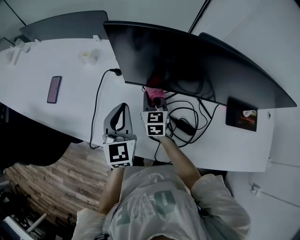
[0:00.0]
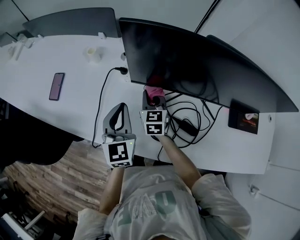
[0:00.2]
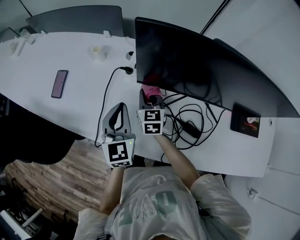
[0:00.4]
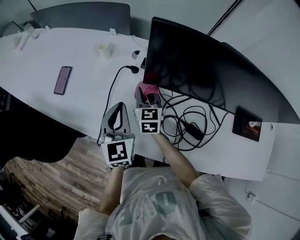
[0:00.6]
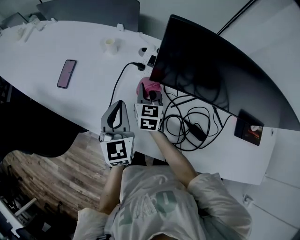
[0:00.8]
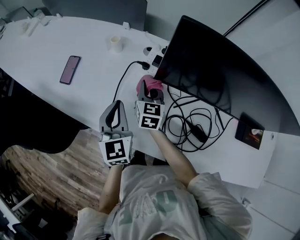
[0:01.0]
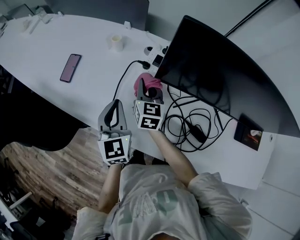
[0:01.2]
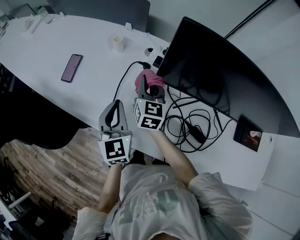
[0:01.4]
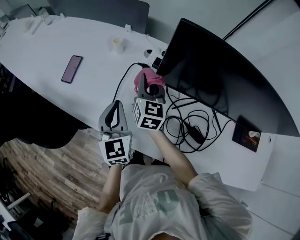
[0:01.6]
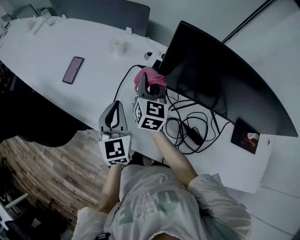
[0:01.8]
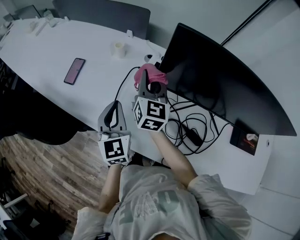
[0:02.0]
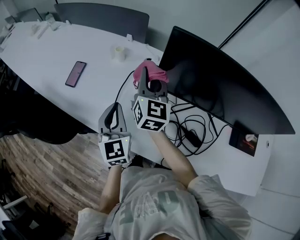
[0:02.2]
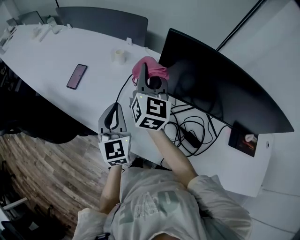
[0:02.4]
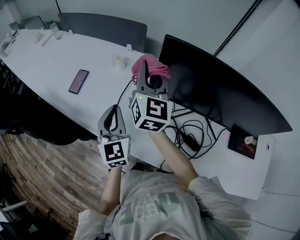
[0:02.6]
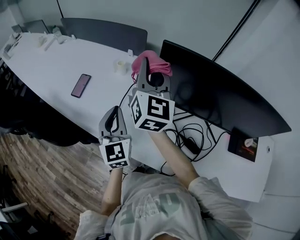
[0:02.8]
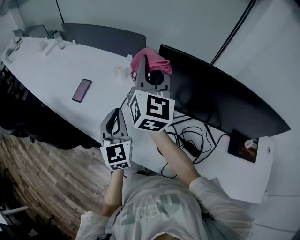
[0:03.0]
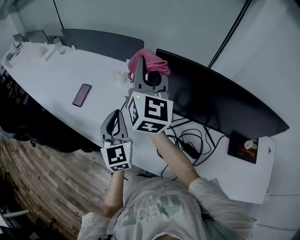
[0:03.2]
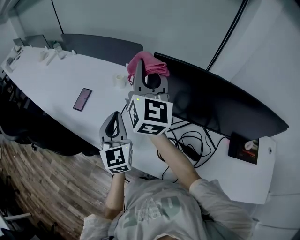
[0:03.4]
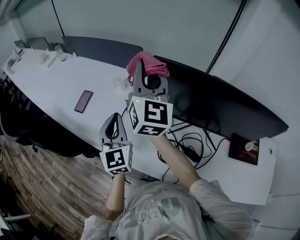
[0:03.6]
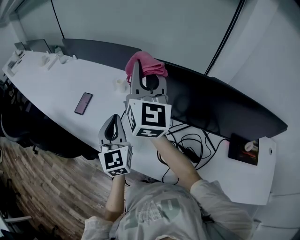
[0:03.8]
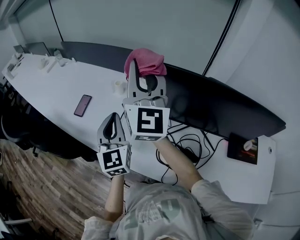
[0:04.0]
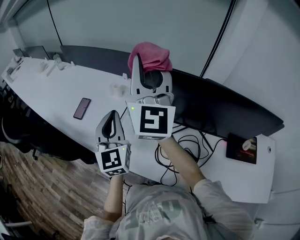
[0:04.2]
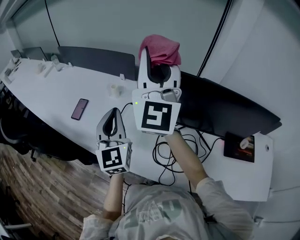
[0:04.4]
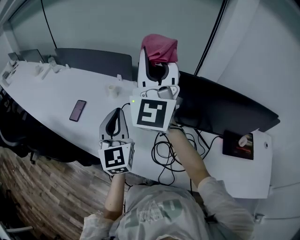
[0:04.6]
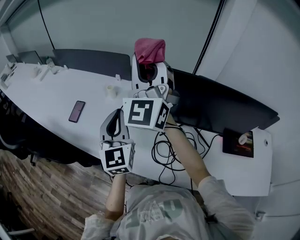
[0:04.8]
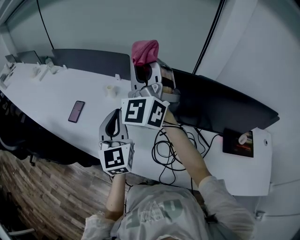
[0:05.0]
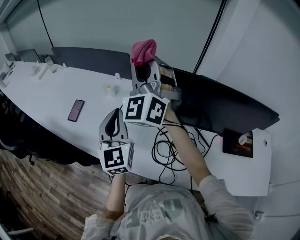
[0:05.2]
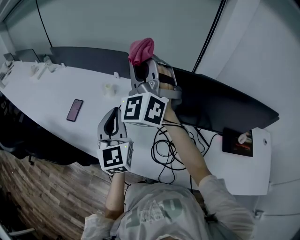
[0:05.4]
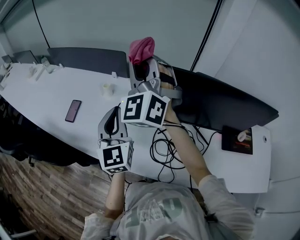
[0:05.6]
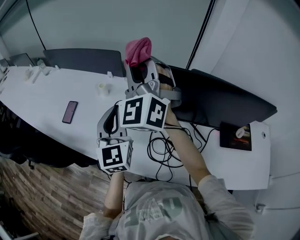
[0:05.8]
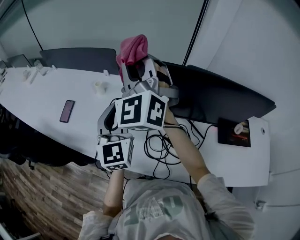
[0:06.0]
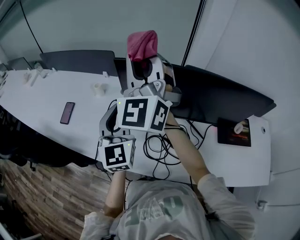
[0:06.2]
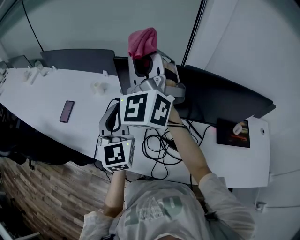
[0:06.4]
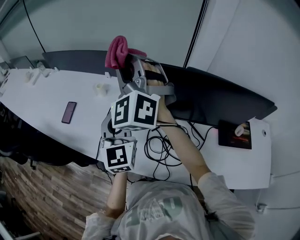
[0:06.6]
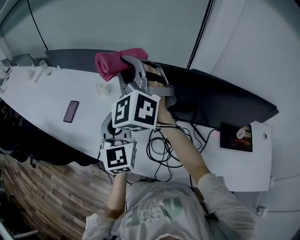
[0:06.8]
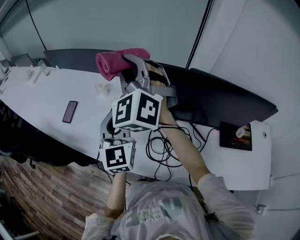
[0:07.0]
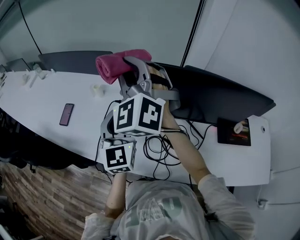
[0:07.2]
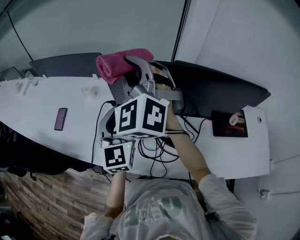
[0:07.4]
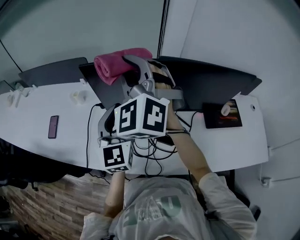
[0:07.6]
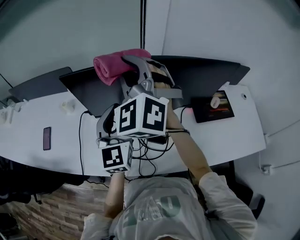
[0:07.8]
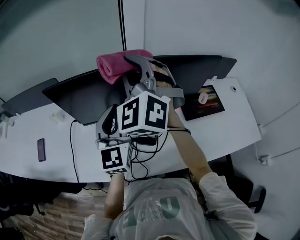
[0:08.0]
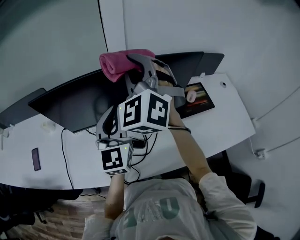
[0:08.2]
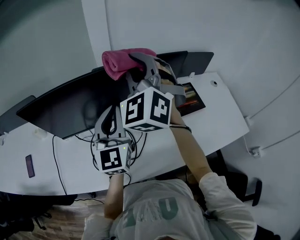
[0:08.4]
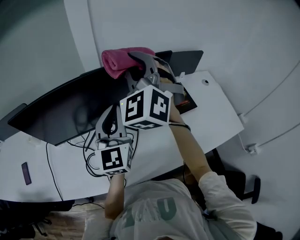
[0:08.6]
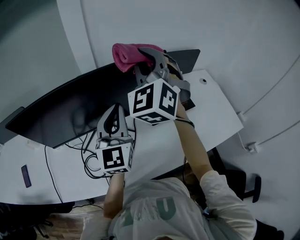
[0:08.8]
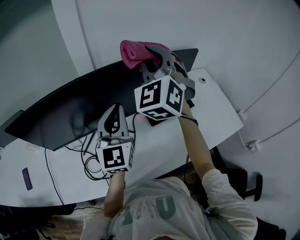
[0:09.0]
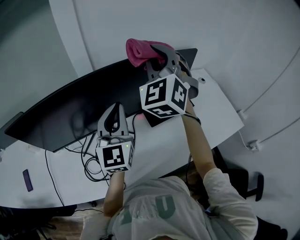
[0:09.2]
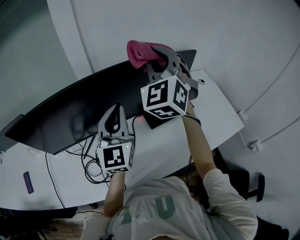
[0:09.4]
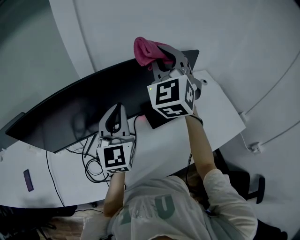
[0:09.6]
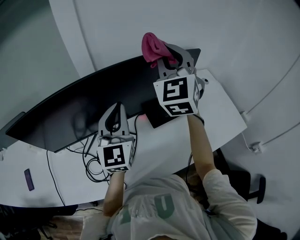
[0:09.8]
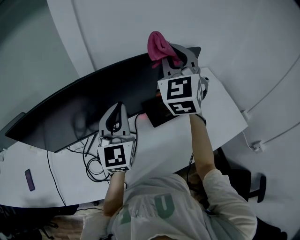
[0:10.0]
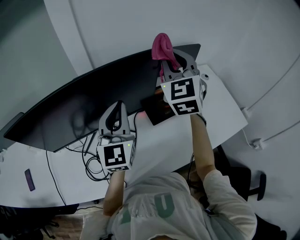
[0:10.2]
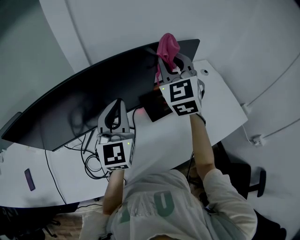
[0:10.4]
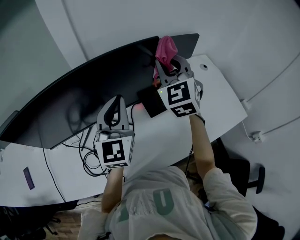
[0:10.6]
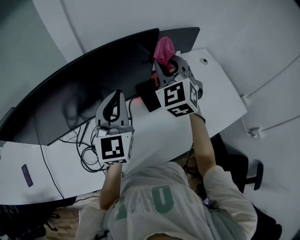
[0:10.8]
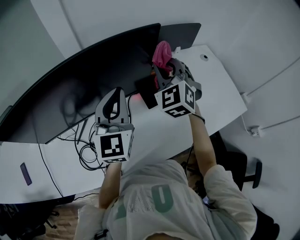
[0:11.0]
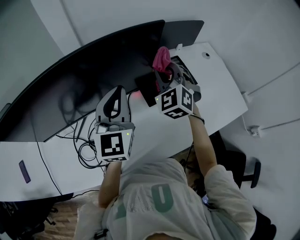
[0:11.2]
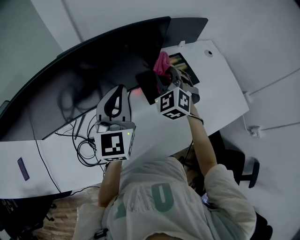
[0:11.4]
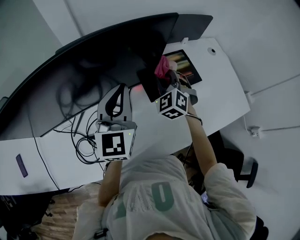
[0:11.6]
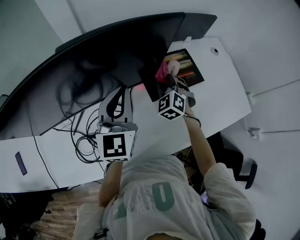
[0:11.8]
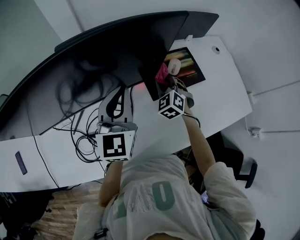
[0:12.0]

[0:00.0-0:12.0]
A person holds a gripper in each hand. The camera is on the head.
0:00.0 to 0:01.6: The right gripper heads to the left and upward, covering about 15 cm; the left gripper travels to the left by approximately 10 cm.
0:01.6 to 0:03.0: The right gripper moves upward, about 25 cm, and changes its angle by approximately 30 degrees. The left gripper moves upward, some 10 cm.
0:03.0 to 0:04.4: The right gripper is displaced upward and backward by some 15 cm, and turns by approximately 30 degrees. The left gripper is displaced upward by approximately 10 cm.
0:04.4 to 0:06.0: The left gripper is displaced to the right by roughly 5 cm. Meanwhile the right gripper shifts some 5 cm downward, and rotates approximately 40 degrees.
0:06.0 to 0:07.6: The two grippers go some 10 cm to the right.
0:07.6 to 0:09.0: The left gripper changes place by roughly 35 cm, and rotates some 30 degrees, while the right gripper moves approximately 40 cm, and turns by about 30 degrees.
0:09.0 to 0:10.4: The right gripper travels to the right and downward by some 10 cm.
0:10.4 to 0:12.0: The right gripper heads downward, covering about 35 cm, and tips its fingers downward by roughly 30 degrees, while the left gripper heads downward, covering about 10 cm.

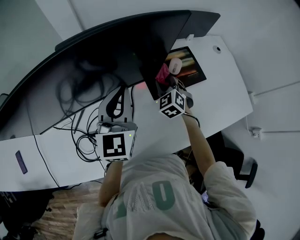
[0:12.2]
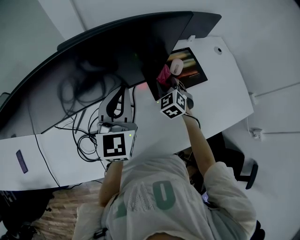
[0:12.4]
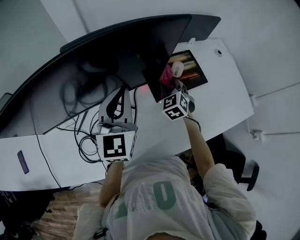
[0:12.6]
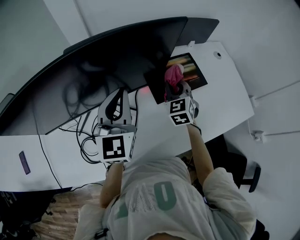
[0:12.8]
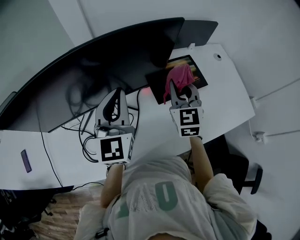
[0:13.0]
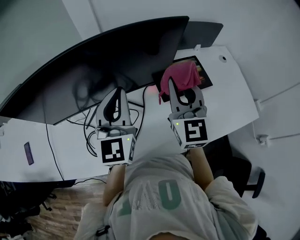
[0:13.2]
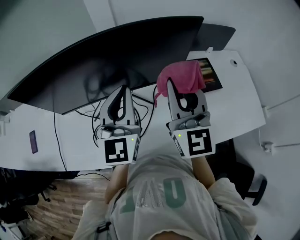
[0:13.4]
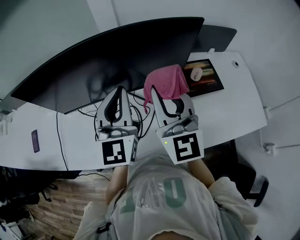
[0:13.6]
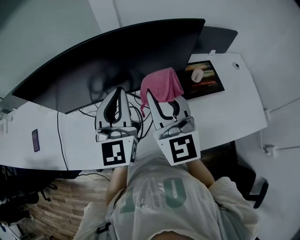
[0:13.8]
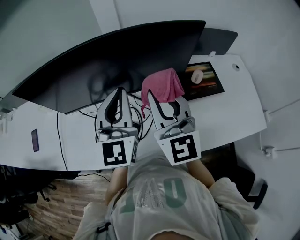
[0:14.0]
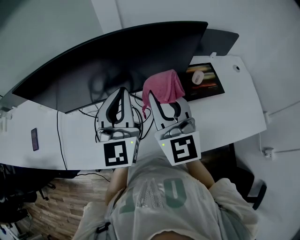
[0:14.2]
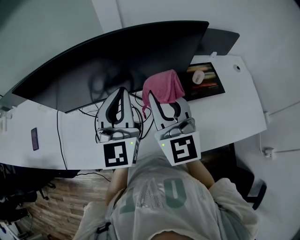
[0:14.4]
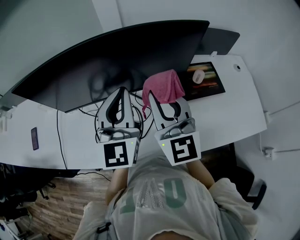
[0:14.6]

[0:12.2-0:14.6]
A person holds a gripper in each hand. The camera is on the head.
0:12.2 to 0:13.4: The left gripper moves upward, backward and to the left, about 10 cm; the right gripper travels upward and backward by some 35 cm, and angles its fingers upward, by roughly 50 degrees.
0:13.4 to 0:14.6: The right gripper travels to the left by about 5 cm.

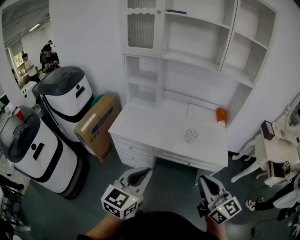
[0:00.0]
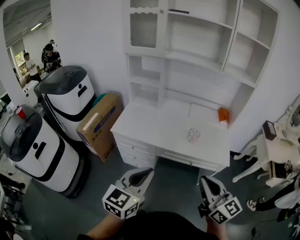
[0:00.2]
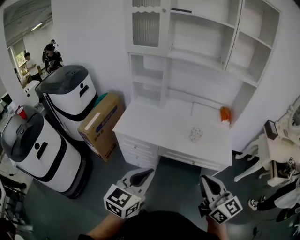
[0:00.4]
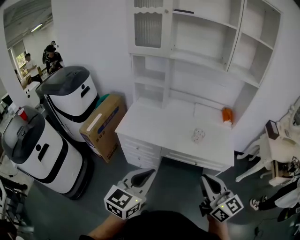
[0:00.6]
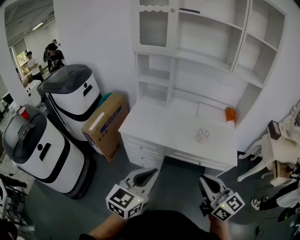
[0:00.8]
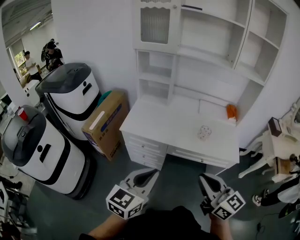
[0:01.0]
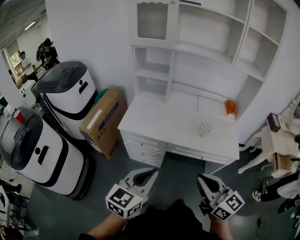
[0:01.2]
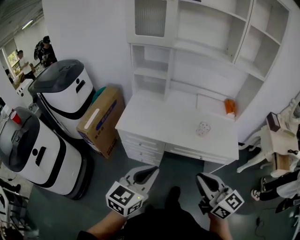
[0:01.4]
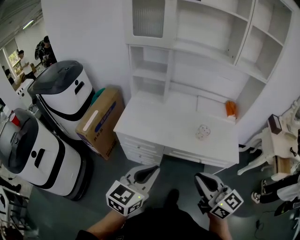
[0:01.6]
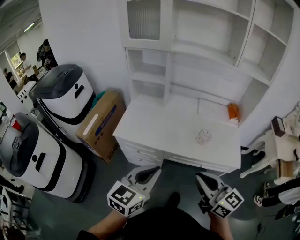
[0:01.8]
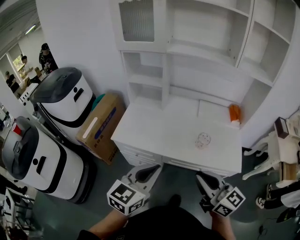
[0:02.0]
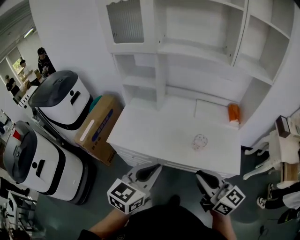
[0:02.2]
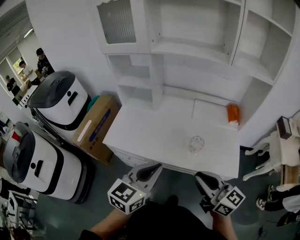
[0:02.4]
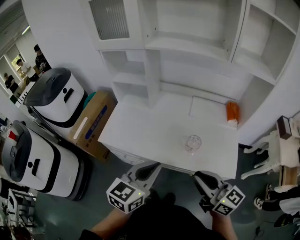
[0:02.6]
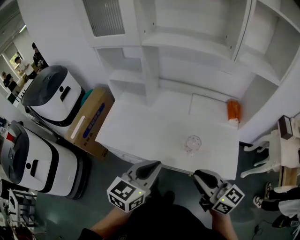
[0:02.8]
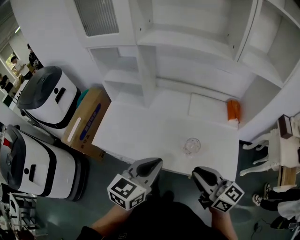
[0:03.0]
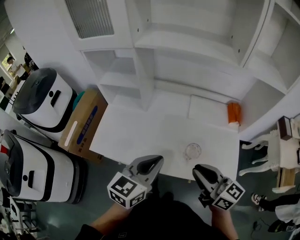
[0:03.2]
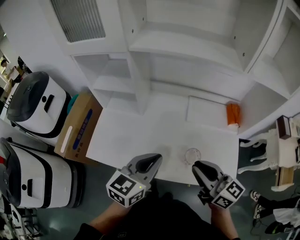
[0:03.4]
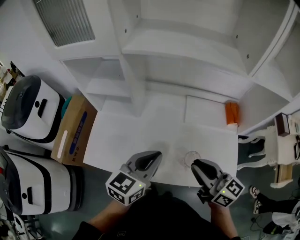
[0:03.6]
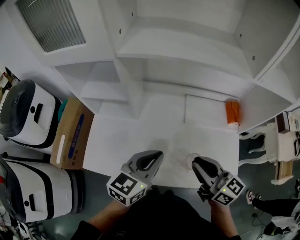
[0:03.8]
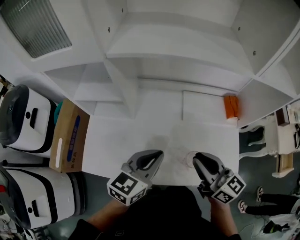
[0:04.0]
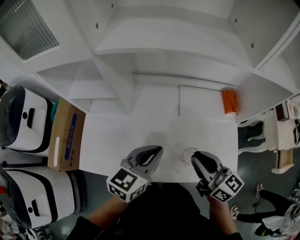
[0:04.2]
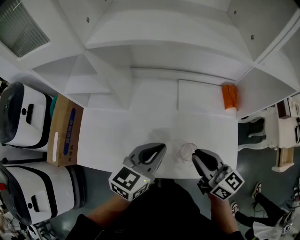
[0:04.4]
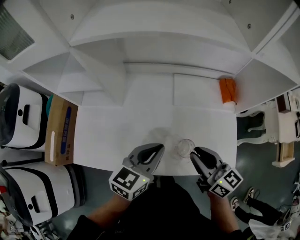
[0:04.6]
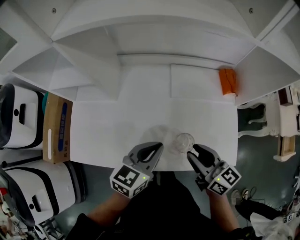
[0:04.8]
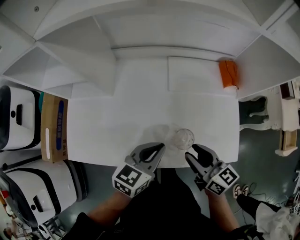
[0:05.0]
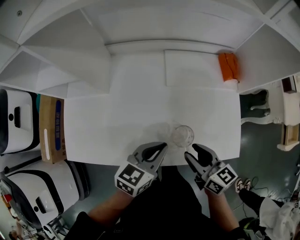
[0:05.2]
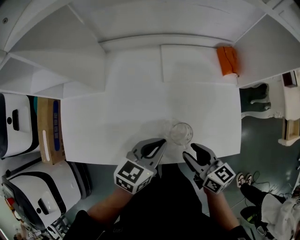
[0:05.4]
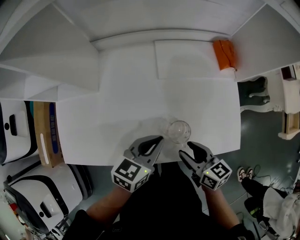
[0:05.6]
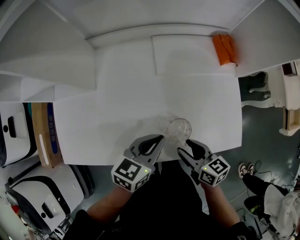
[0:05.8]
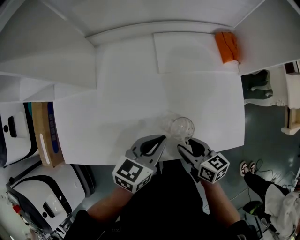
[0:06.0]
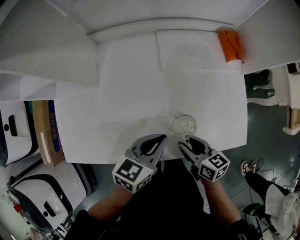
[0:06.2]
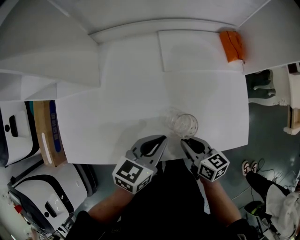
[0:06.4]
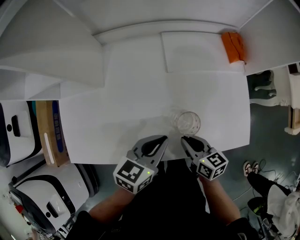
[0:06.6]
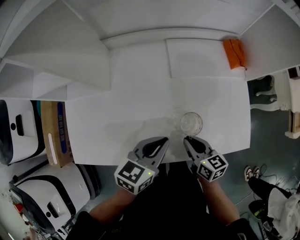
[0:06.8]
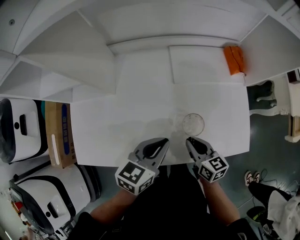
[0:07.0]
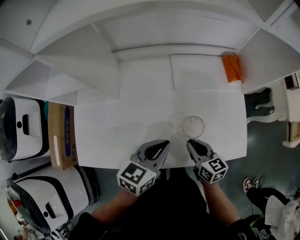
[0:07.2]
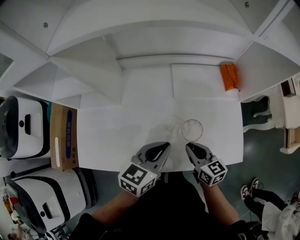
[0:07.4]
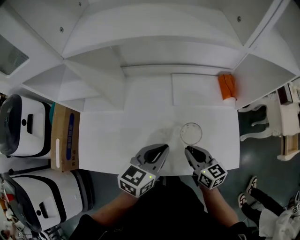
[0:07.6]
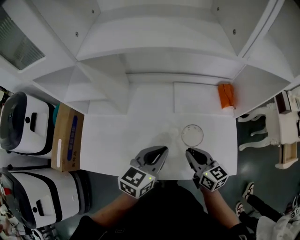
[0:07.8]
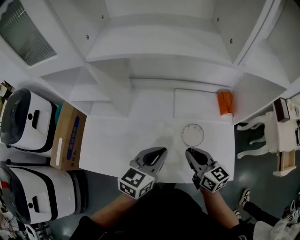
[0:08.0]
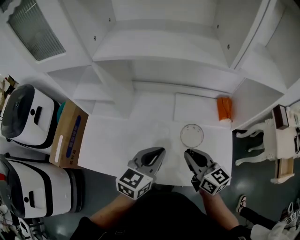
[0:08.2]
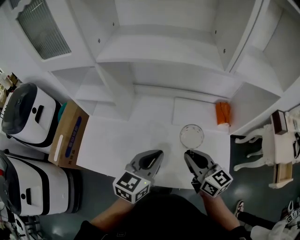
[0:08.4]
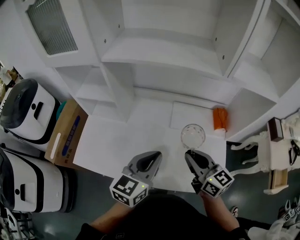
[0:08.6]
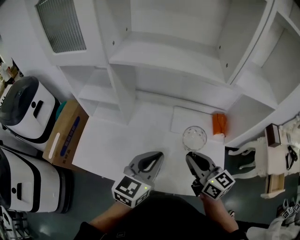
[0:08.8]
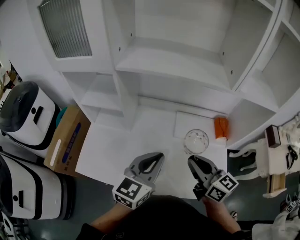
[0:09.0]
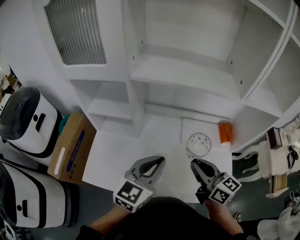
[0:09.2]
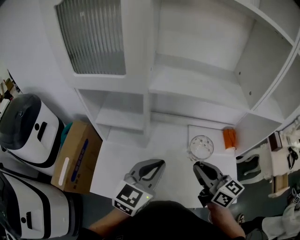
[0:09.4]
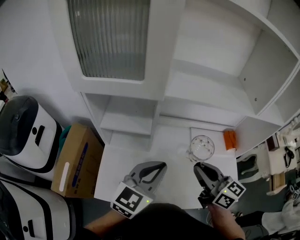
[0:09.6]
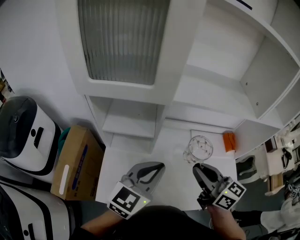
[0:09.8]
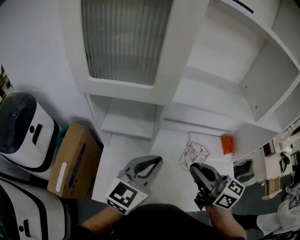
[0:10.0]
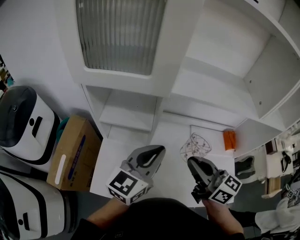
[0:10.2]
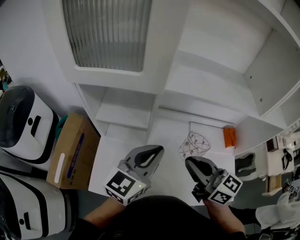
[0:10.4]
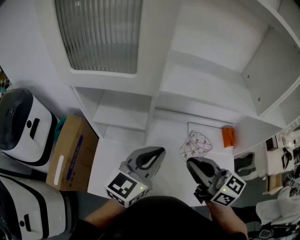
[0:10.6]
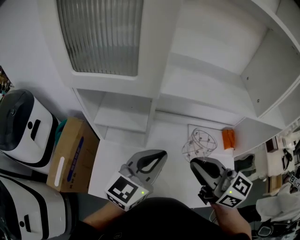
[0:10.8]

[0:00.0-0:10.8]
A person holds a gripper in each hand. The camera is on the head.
0:00.0 to 0:01.6: The left gripper goes about 5 cm forward. The right gripper travels to the left and forward by roughly 10 cm.
0:01.6 to 0:03.0: The grippers both shift forward and to the right by approximately 25 cm.
0:03.0 to 0:04.6: The left gripper travels forward and downward by about 20 cm. The right gripper travels forward by roughly 15 cm.
0:04.6 to 0:06.2: The left gripper travels downward by about 15 cm, while the right gripper shifts about 20 cm downward, swivels approximately 30 degrees, and opens its fingers.
0:06.2 to 0:07.8: The left gripper is displaced upward by about 15 cm; the right gripper moves upward and forward, some 15 cm, rotates approximately 20 degrees, and closes up.
0:07.8 to 0:09.2: The left gripper travels upward and to the left by approximately 15 cm. The right gripper shifts roughly 15 cm upward.
0:09.2 to 0:10.8: The right gripper heads to the left and upward, covering roughly 15 cm; the left gripper heads to the left, forward and upward, covering roughly 15 cm.
